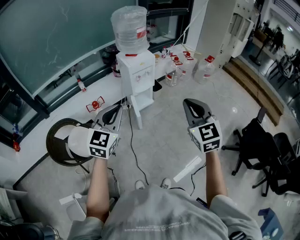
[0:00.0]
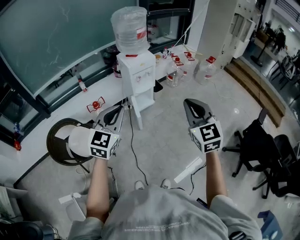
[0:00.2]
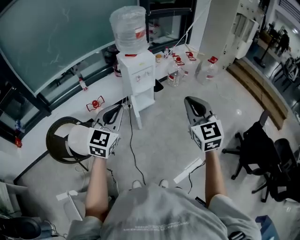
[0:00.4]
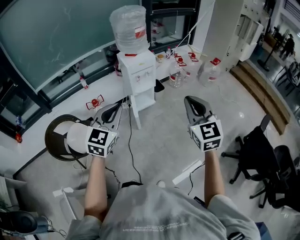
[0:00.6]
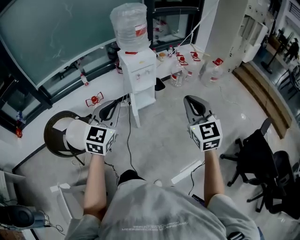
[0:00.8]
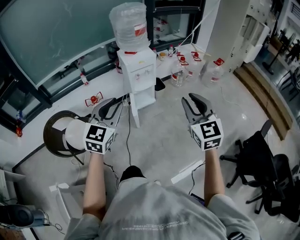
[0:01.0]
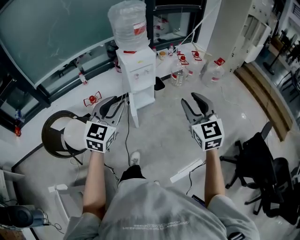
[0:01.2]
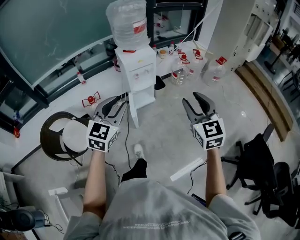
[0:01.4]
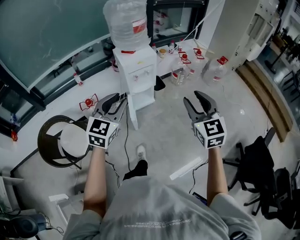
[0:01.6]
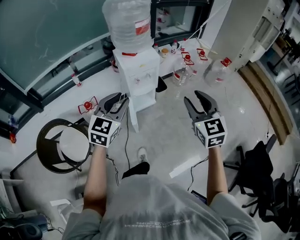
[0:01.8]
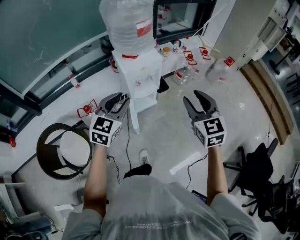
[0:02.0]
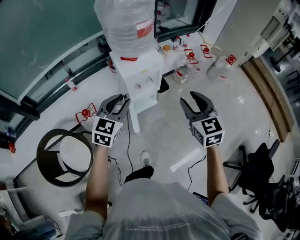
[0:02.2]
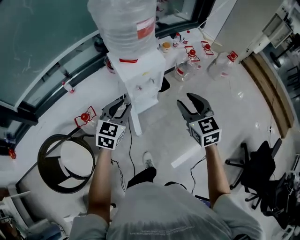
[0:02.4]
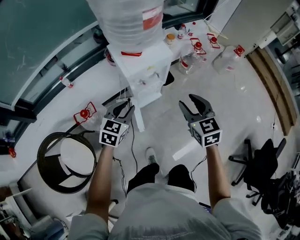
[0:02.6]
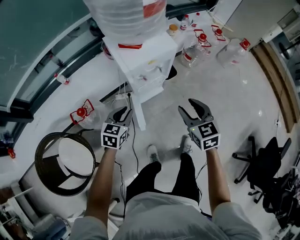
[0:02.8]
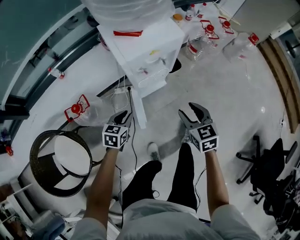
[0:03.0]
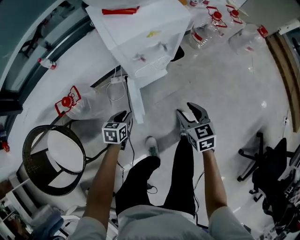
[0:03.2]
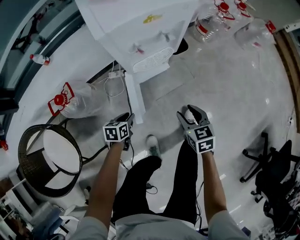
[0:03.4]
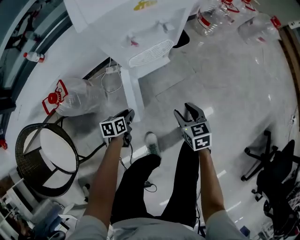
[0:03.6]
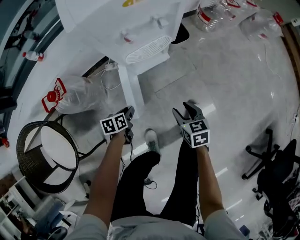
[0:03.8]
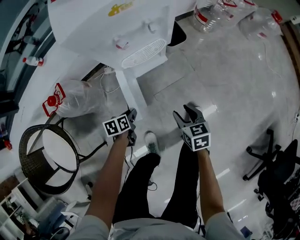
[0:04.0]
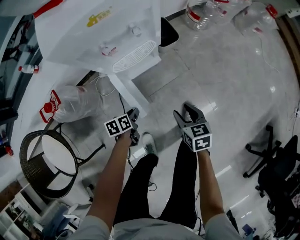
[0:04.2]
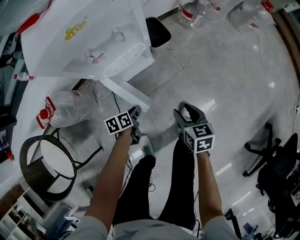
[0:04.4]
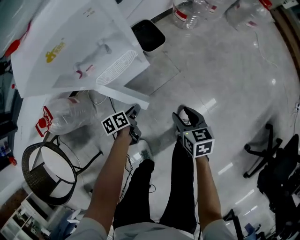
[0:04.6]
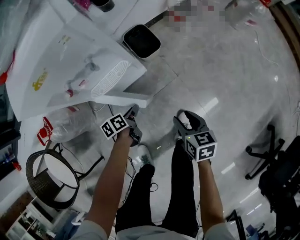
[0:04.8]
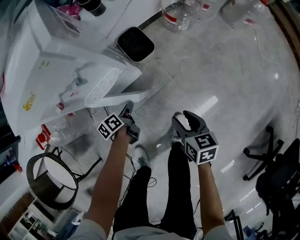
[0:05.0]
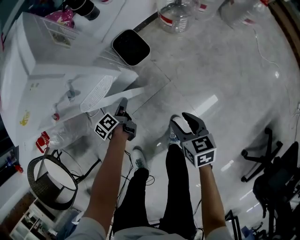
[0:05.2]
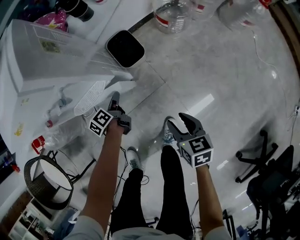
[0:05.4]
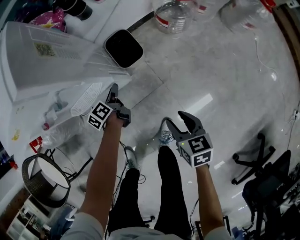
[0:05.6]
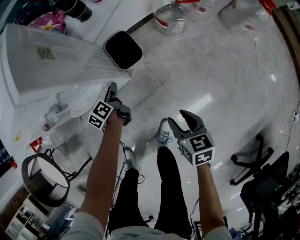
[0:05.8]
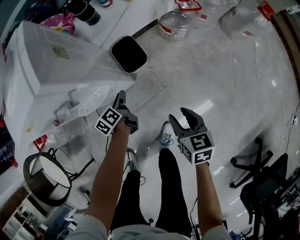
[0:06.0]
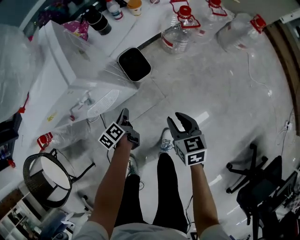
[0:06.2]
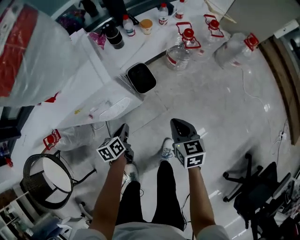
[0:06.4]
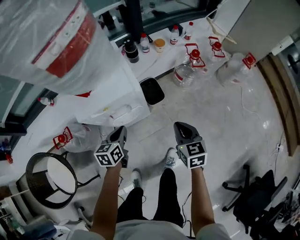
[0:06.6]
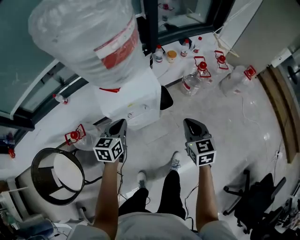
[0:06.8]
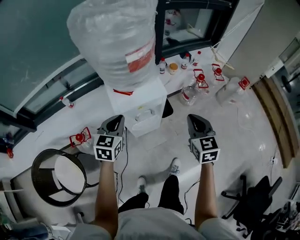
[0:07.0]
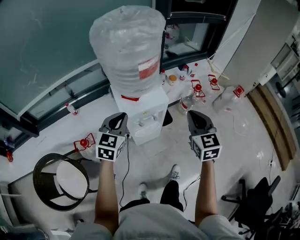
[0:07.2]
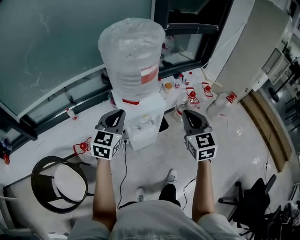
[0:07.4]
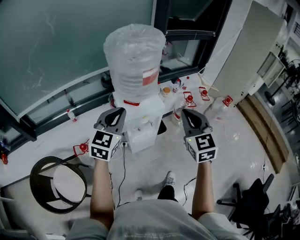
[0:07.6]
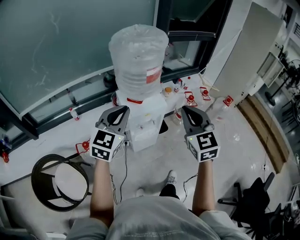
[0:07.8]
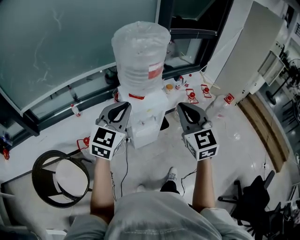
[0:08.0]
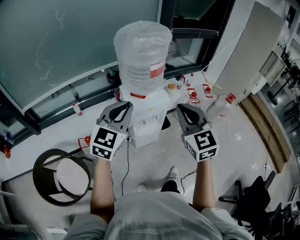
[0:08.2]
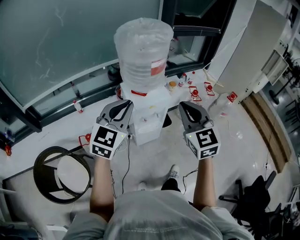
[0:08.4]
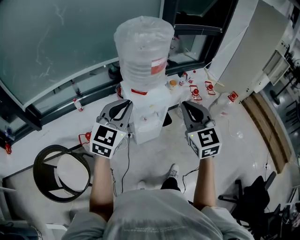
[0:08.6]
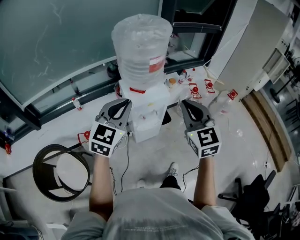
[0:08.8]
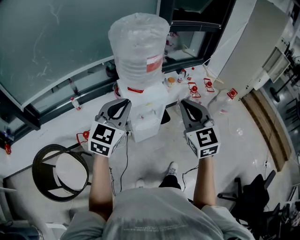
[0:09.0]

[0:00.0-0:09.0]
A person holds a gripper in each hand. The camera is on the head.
0:00.0 to 0:01.6: The grippers both shift forward and to the right by roughly 20 cm. The right gripper opens its fingers. Meanwhile the left gripper opens up.
0:01.6 to 0:03.0: The two grippers go approximately 50 cm downward and forward. The right gripper changes its angle by some 30 degrees, while the left gripper tilts its fingers some 30 degrees downward.
0:03.0 to 0:04.4: The grippers both shift downward and to the right by approximately 30 cm. The right gripper turns by about 20 degrees; the left gripper rolls counterclockwise, seen from behind, by roughly 40 degrees.
0:04.4 to 0:06.0: The left gripper heads forward and to the right, covering about 30 cm, and swivels about 30 degrees, while the right gripper heads to the right and forward, covering some 25 cm.
0:06.0 to 0:07.6: The left gripper shifts about 70 cm upward, twists approximately 70 degrees clockwise, seen from behind, and closes up; the right gripper moves upward and to the left, approximately 70 cm, tilts its fingers roughly 30 degrees upward, and closes.
0:07.6 to 0:09.0: The left gripper moves roughly 5 cm.

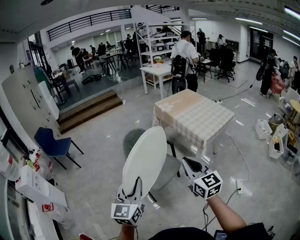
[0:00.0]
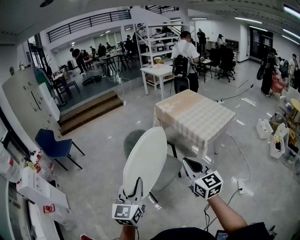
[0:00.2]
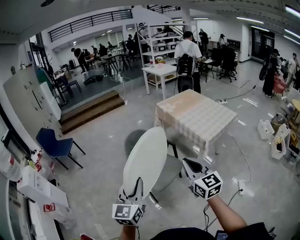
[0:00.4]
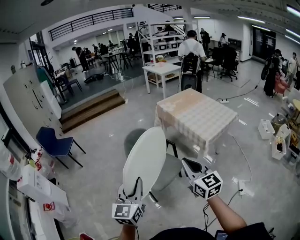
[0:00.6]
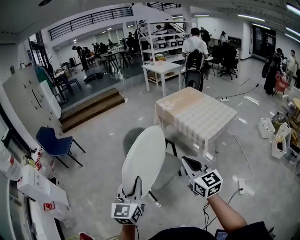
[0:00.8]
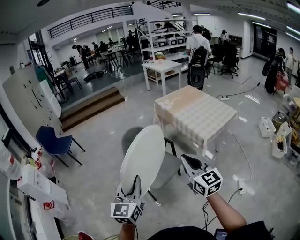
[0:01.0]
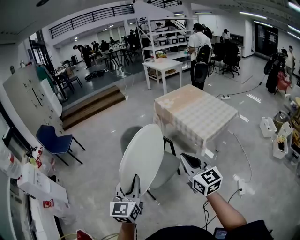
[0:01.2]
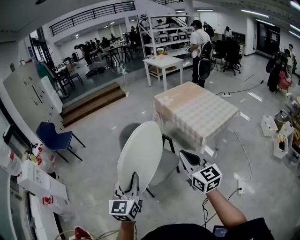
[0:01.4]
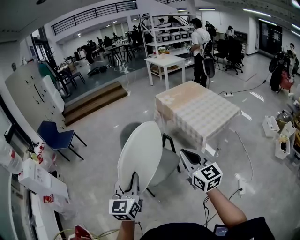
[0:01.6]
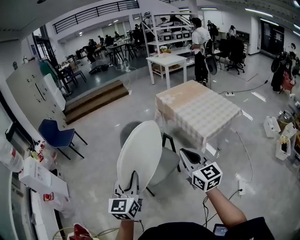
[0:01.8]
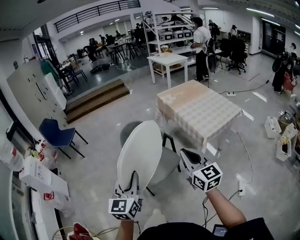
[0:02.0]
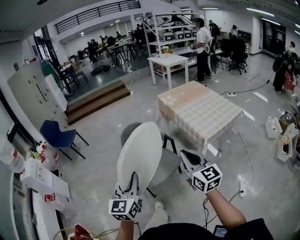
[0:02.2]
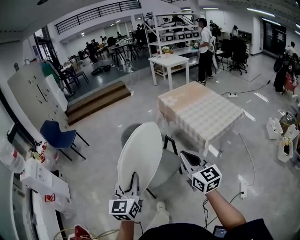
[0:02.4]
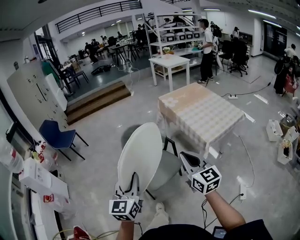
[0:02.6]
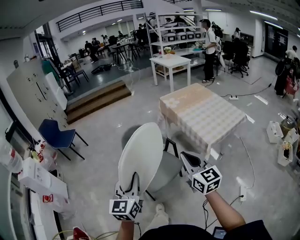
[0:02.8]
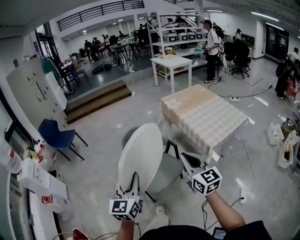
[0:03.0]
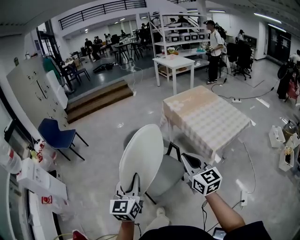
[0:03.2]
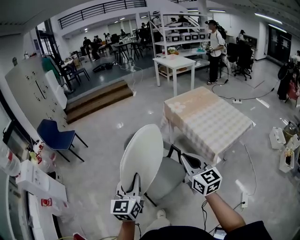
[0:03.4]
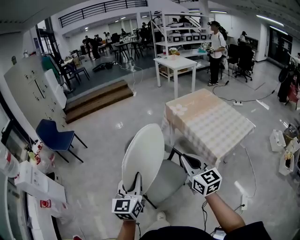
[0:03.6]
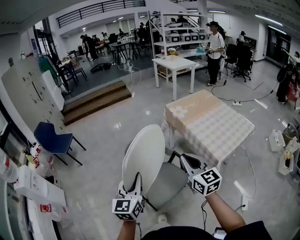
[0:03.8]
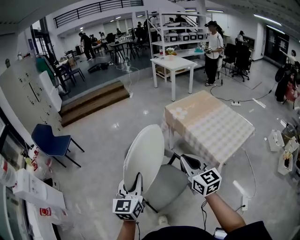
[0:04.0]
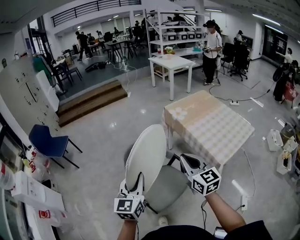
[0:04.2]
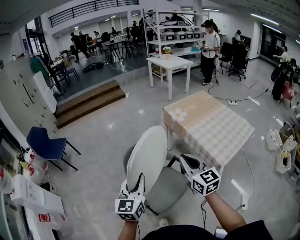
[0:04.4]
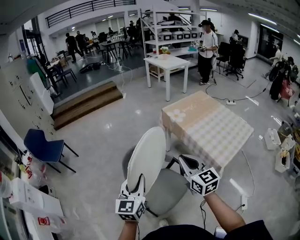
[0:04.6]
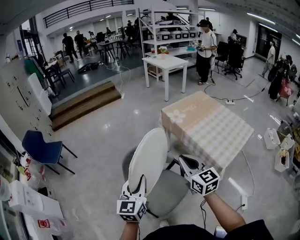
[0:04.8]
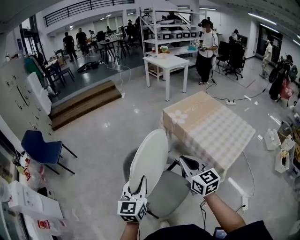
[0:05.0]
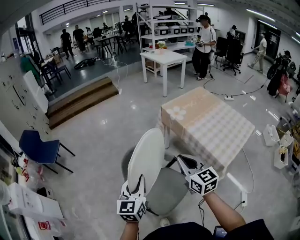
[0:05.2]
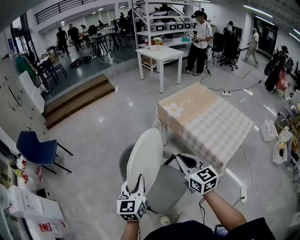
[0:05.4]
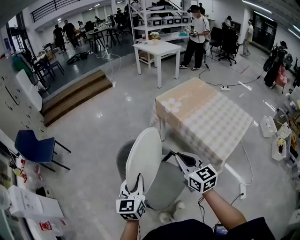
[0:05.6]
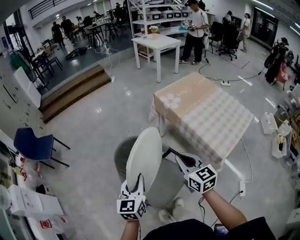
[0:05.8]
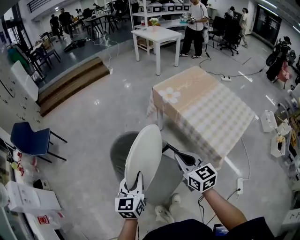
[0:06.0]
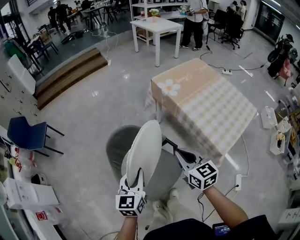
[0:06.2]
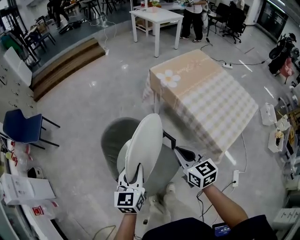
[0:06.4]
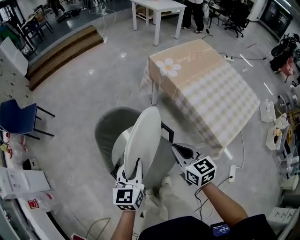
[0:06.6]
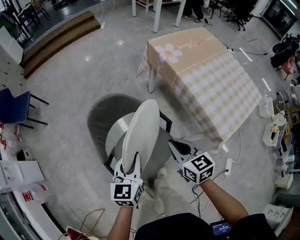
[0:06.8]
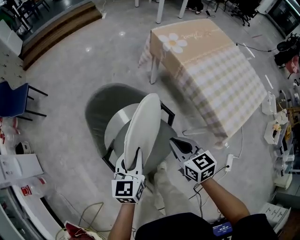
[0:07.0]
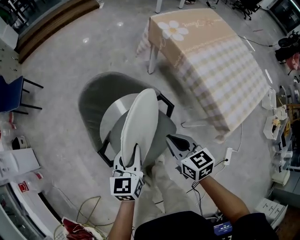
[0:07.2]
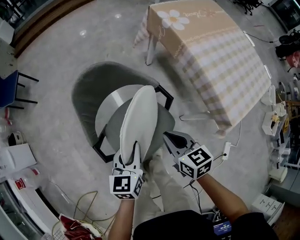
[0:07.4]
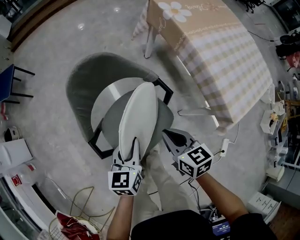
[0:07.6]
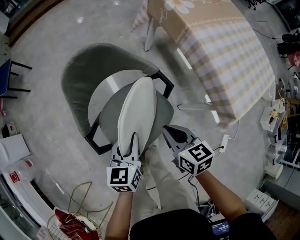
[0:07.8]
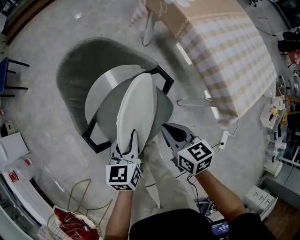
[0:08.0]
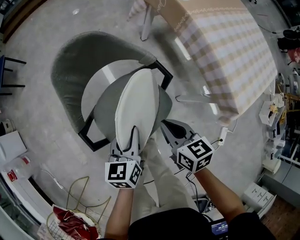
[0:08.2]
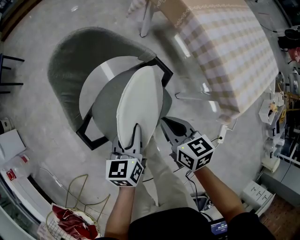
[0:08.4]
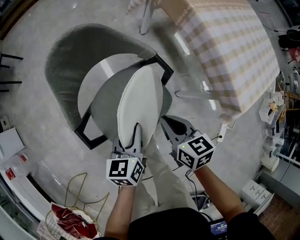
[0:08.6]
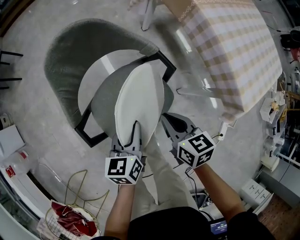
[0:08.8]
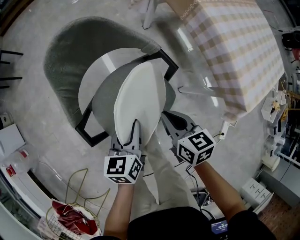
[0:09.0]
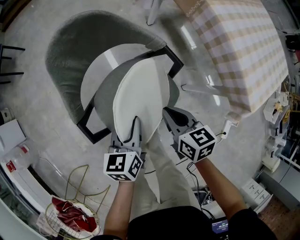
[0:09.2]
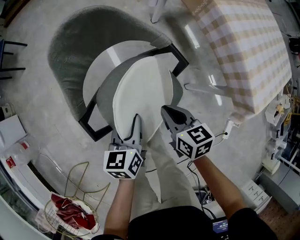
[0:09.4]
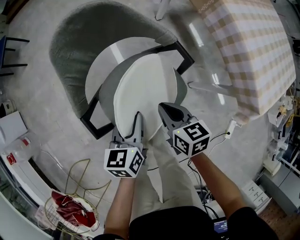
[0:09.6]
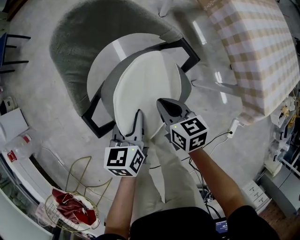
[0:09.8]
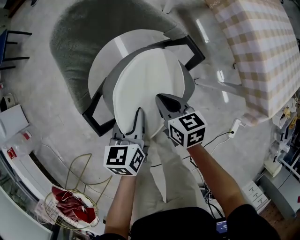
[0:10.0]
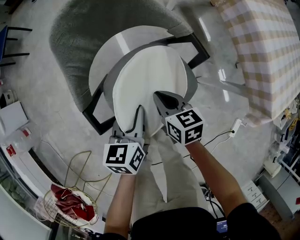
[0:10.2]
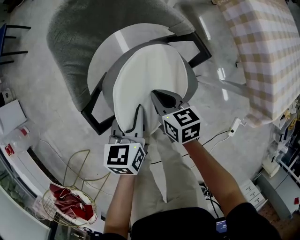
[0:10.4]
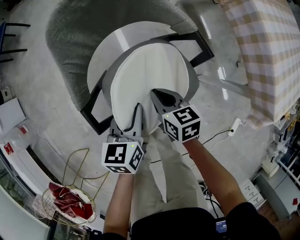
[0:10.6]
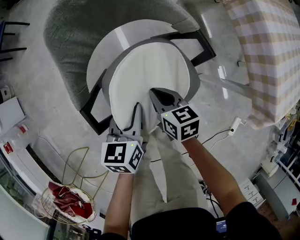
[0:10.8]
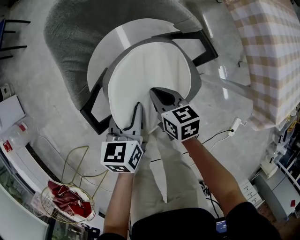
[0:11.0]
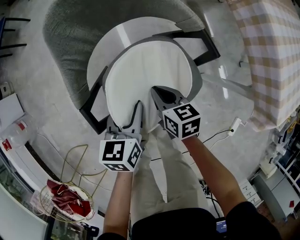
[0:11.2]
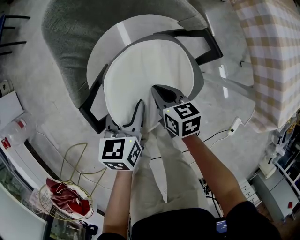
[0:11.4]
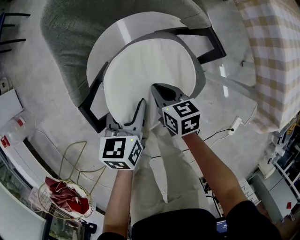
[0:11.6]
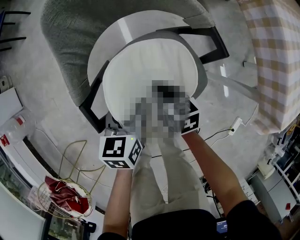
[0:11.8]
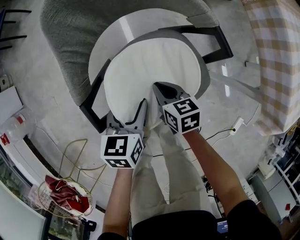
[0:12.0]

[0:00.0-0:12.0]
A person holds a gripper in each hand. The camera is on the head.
0:00.0 to 0:01.6: The two grippers go roughly 5 cm to the right.
0:01.6 to 0:03.0: Both grippers move forward, roughly 10 cm.
0:03.0 to 0:04.4: The grippers both shift forward by approximately 20 cm.
0:04.4 to 0:06.0: The two grippers go some 15 cm downward and forward.
0:06.0 to 0:07.6: Both grippers move downward, some 25 cm. The right gripper rotates about 20 degrees.
0:07.6 to 0:09.0: The grippers both shift downward by roughly 10 cm.
0:09.0 to 0:10.4: The right gripper heads downward and to the left, covering approximately 15 cm; the left gripper heads downward, covering approximately 5 cm.
0:10.4 to 0:12.0: The two grippers go some 5 cm downward. The left gripper opens.

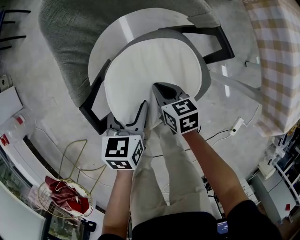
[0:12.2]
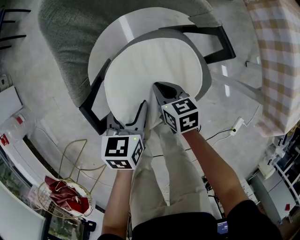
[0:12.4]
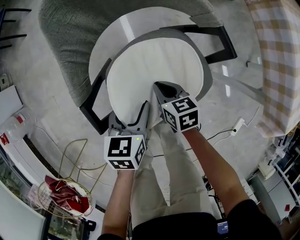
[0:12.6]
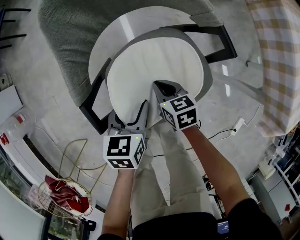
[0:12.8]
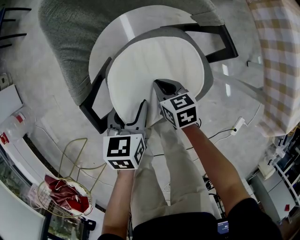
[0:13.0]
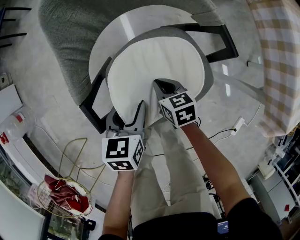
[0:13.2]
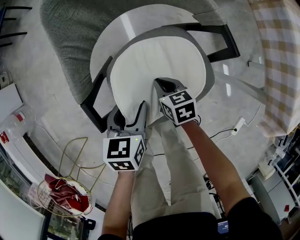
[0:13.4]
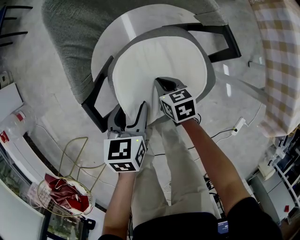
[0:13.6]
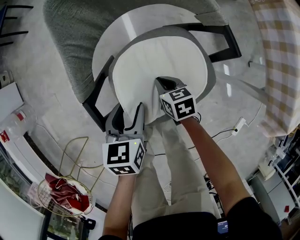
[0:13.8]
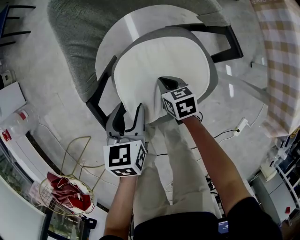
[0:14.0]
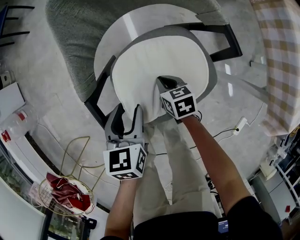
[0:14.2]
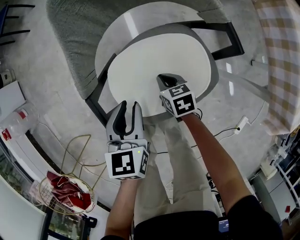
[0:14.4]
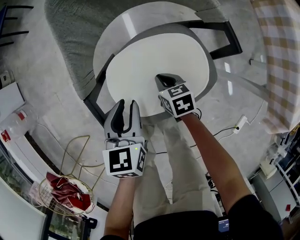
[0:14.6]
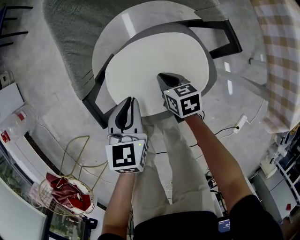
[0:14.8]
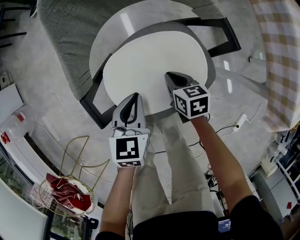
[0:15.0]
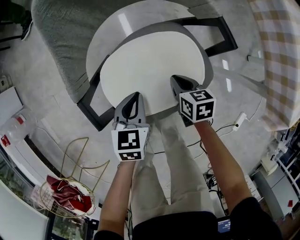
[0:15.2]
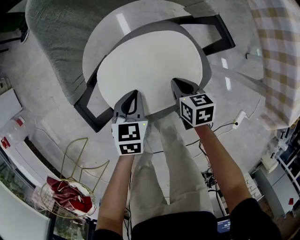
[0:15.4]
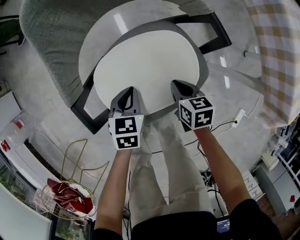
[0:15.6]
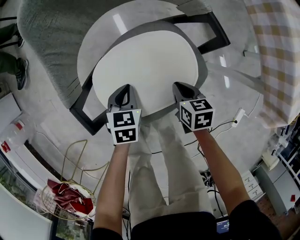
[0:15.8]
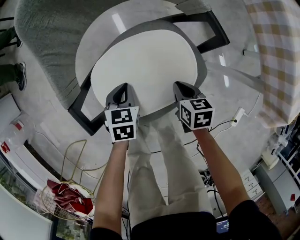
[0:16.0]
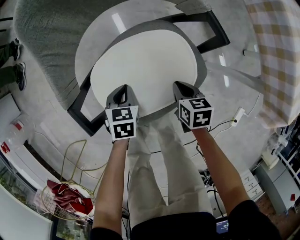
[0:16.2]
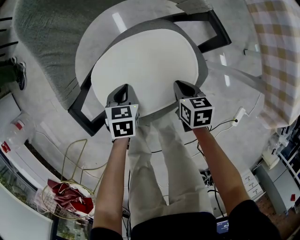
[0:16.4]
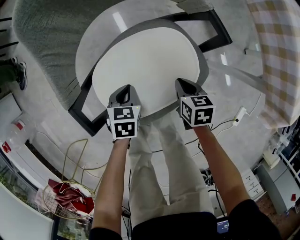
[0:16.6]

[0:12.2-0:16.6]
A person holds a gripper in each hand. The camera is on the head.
0:12.2 to 0:13.6: The grippers stay close to where they were, moving slightly.
0:13.6 to 0:15.2: The left gripper closes its fingers; the right gripper shifts roughly 5 cm to the right.
0:15.2 to 0:16.6: The left gripper moves downward, some 10 cm, while the right gripper shifts by some 5 cm.
